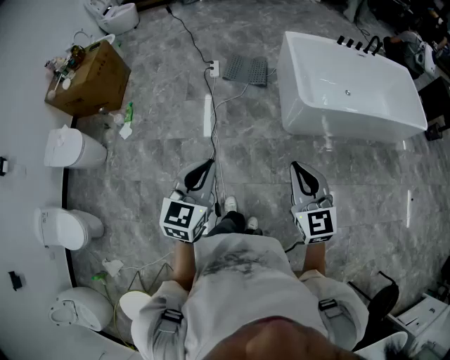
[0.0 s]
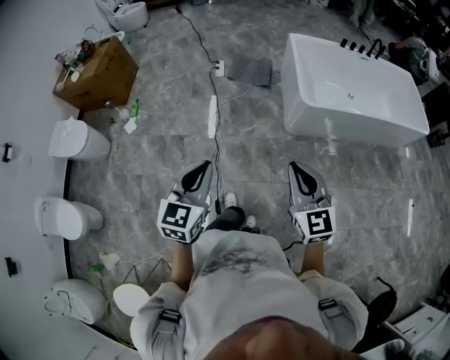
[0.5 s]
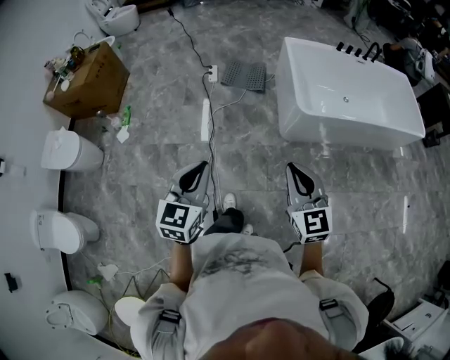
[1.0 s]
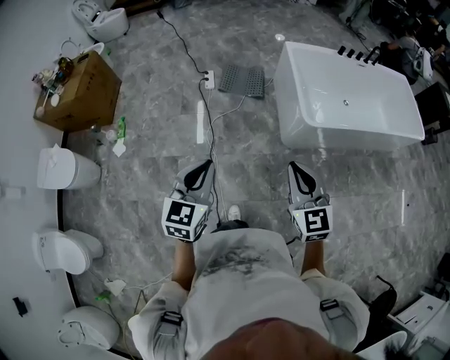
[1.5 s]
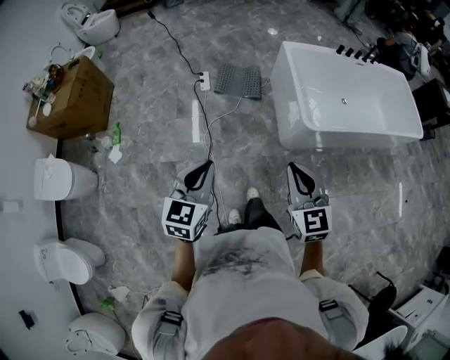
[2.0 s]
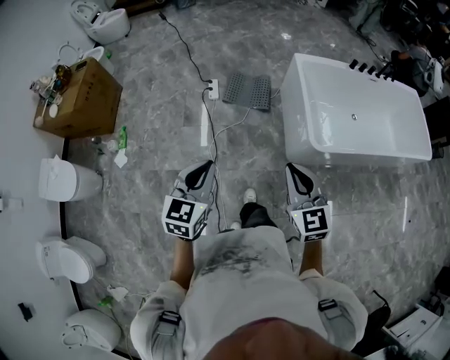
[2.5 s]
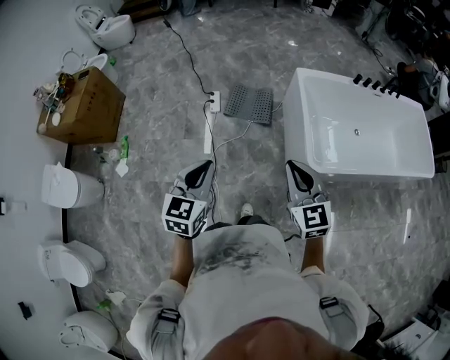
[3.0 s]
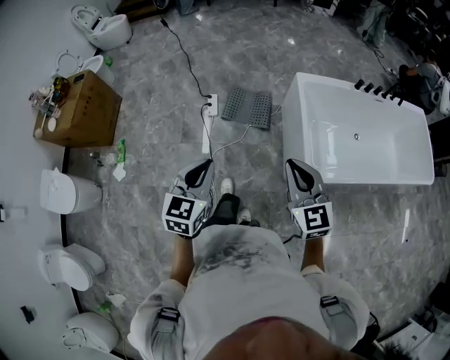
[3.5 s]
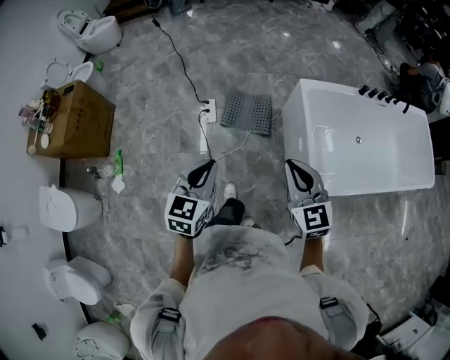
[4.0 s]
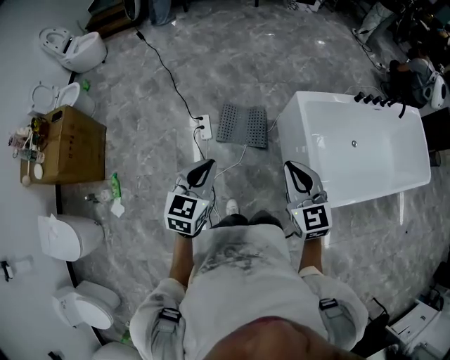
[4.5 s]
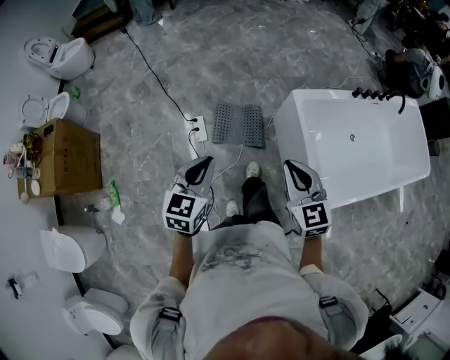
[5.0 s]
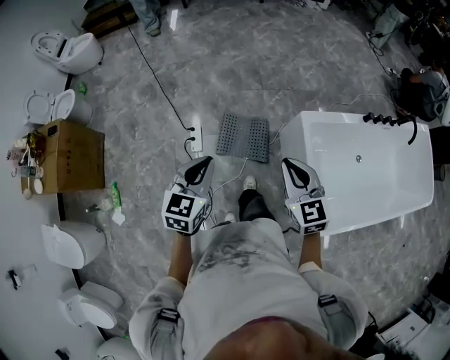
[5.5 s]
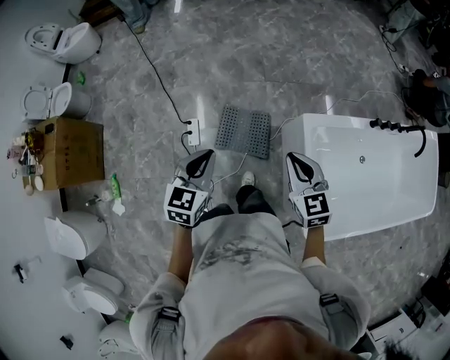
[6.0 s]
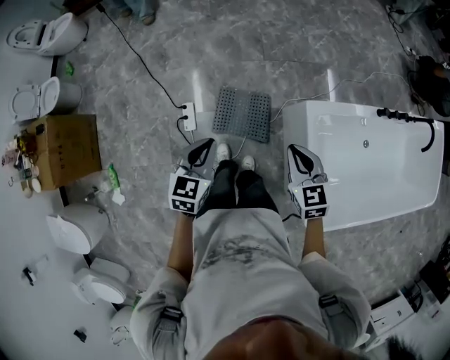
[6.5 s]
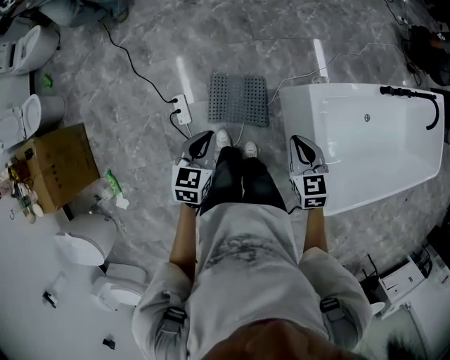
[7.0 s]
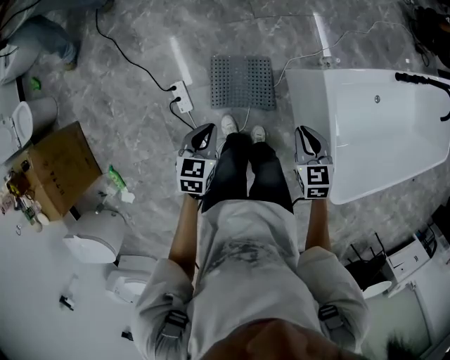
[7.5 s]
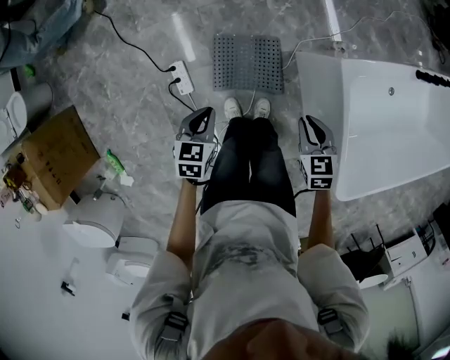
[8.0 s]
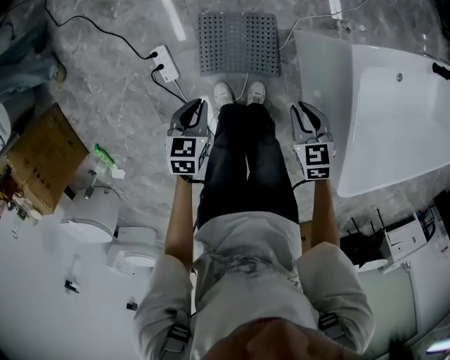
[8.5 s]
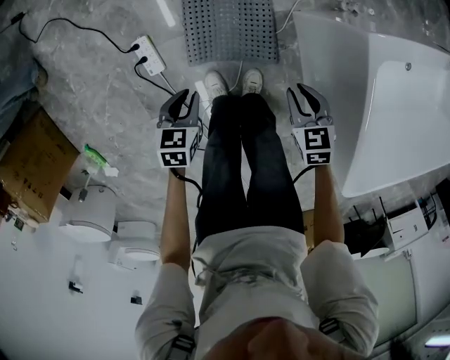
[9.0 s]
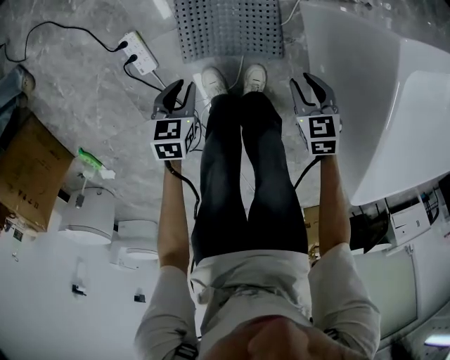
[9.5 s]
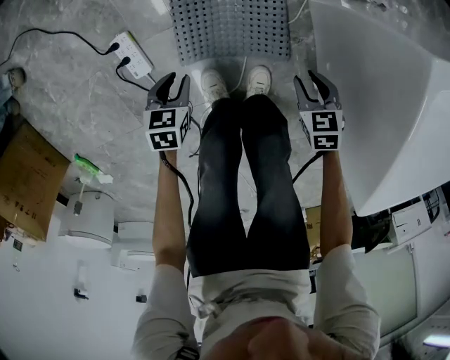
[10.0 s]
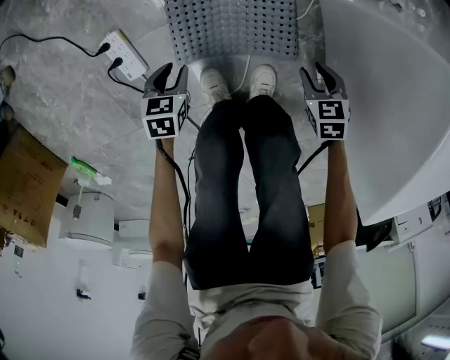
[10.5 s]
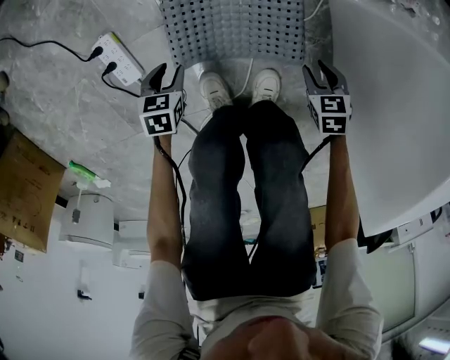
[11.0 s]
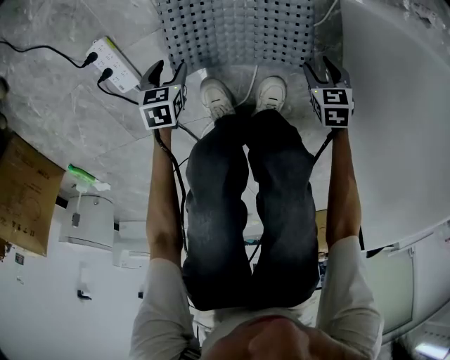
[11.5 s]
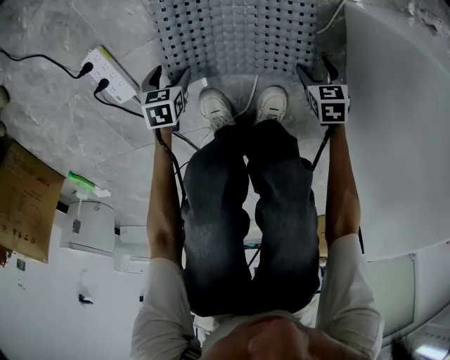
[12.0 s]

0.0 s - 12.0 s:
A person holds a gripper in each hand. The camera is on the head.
0.0 s - 2.0 s: Both grippers move forward, roughly 20 cm.
2.0 s - 4.0 s: Both grippers move forward, about 40 cm.
4.0 s - 6.0 s: Both grippers are carried forward, some 40 cm.
6.0 s - 8.0 s: Both grippers move downward, about 35 cm. The left gripper turns by approximately 20 degrees. The right gripper swivels about 30 degrees.
8.0 s - 10.0 s: The grippers both shift downward by approximately 40 cm.
10.0 s - 12.0 s: Both grippers move downward, some 30 cm. The left gripper opens. The right gripper opens.

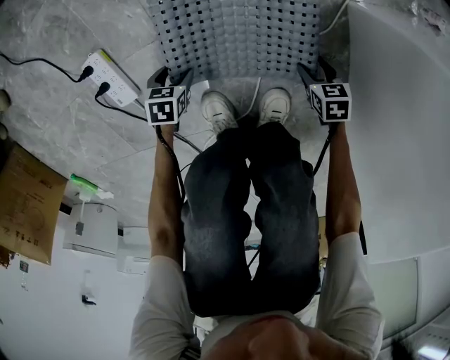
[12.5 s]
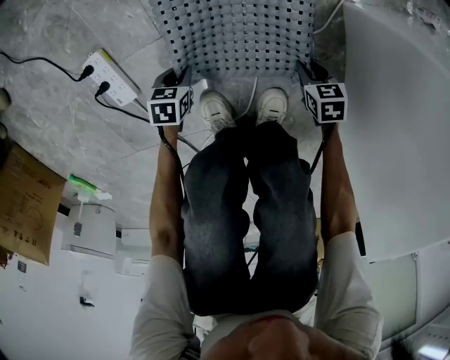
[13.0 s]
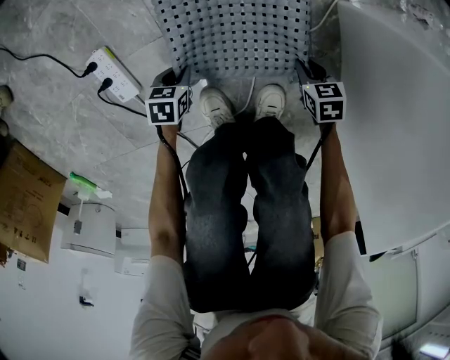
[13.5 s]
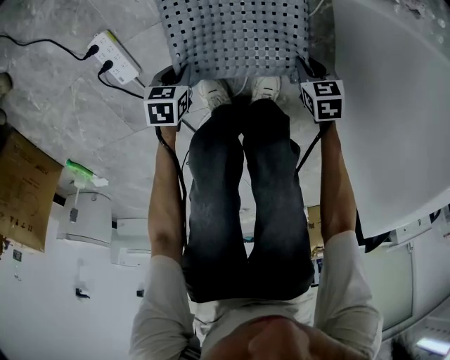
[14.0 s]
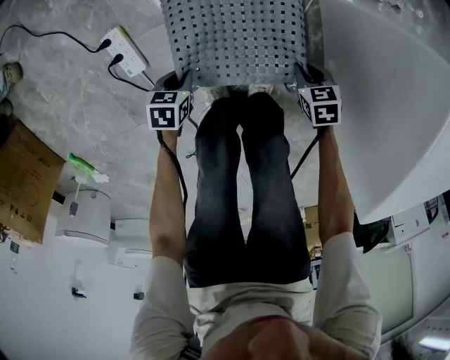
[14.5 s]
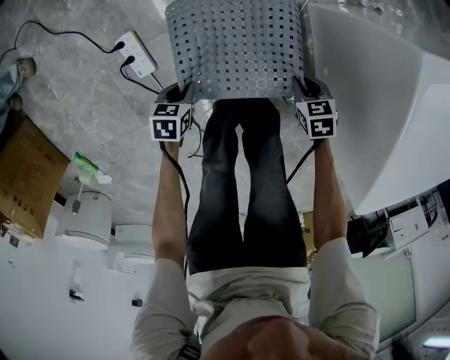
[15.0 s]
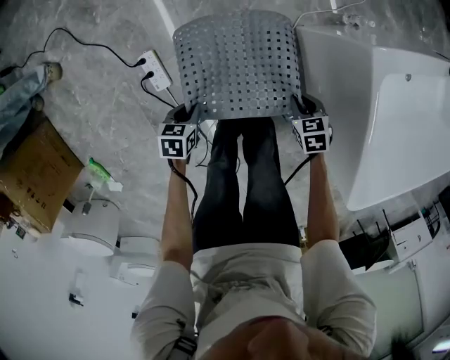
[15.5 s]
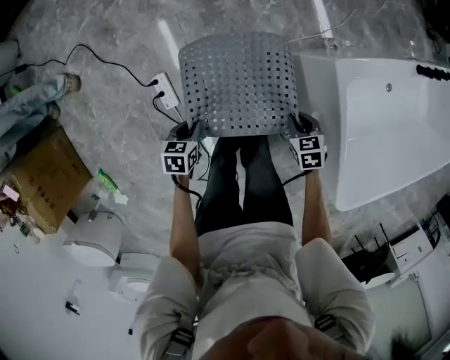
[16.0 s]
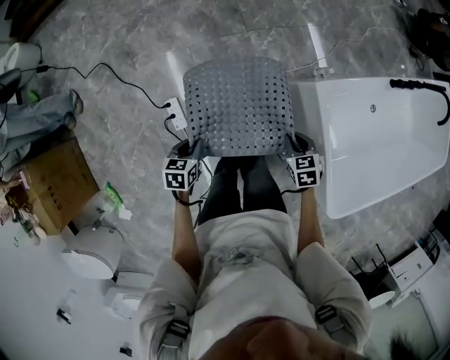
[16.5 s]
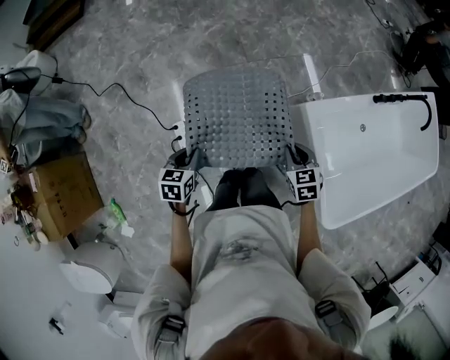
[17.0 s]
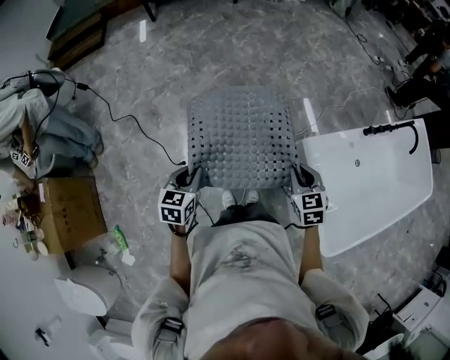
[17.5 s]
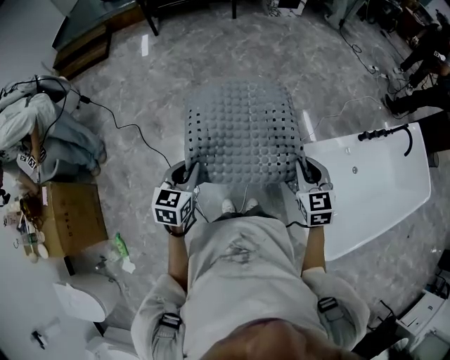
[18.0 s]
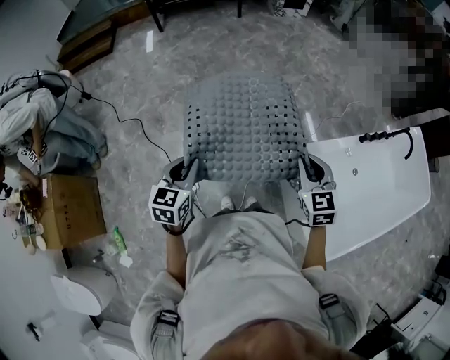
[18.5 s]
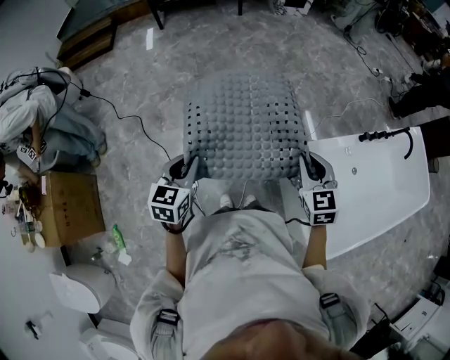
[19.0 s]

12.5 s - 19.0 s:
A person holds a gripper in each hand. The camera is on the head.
12.5 s - 14.5 s: The grippers both shift upward by roughly 20 cm. The right gripper closes, while the left gripper closes up.
14.5 s - 17.0 s: The grippers both shift upward by about 60 cm. The left gripper rotates some 30 degrees. Meanwhile the right gripper turns by about 30 degrees.
17.0 s - 19.0 s: The grippers both shift upward by about 25 cm. The left gripper swivels approximately 20 degrees, while the right gripper swivels about 30 degrees.

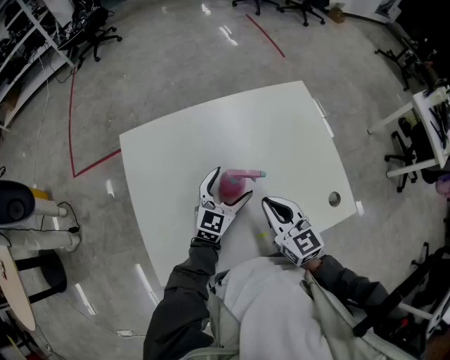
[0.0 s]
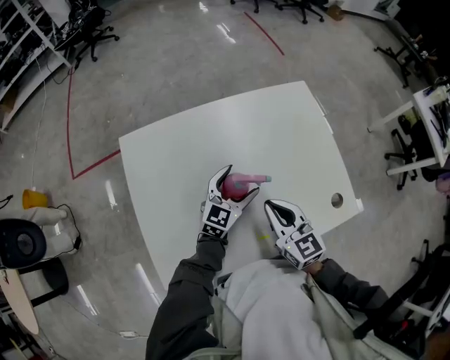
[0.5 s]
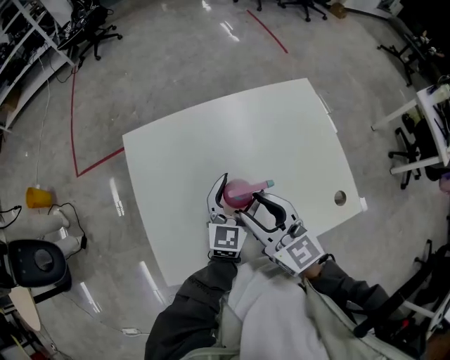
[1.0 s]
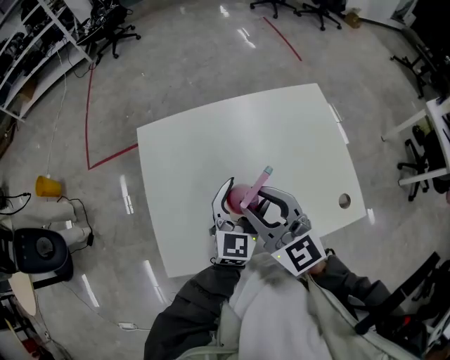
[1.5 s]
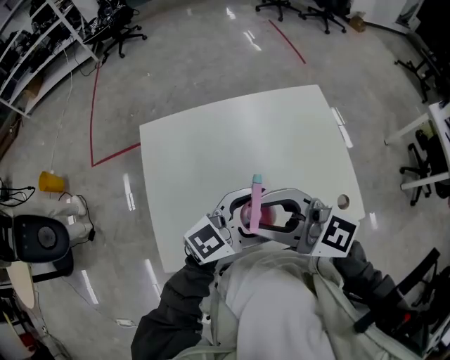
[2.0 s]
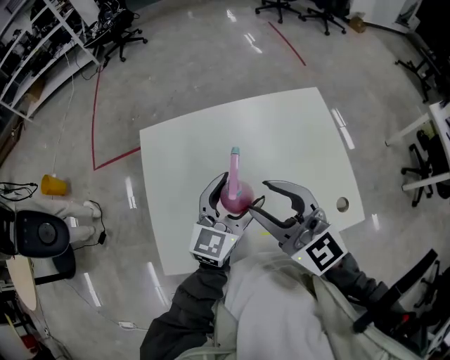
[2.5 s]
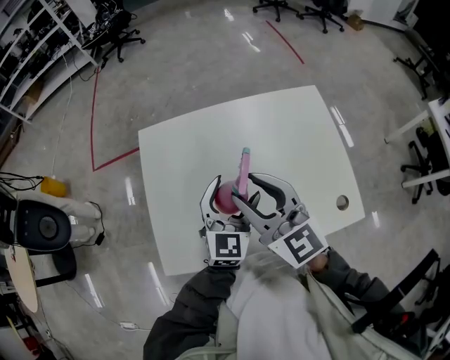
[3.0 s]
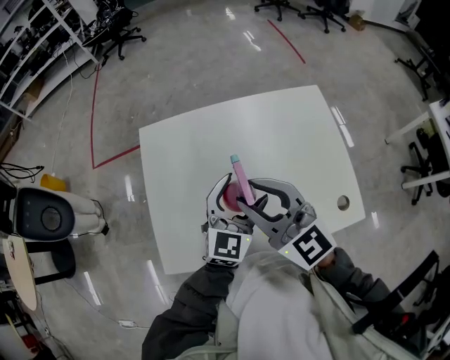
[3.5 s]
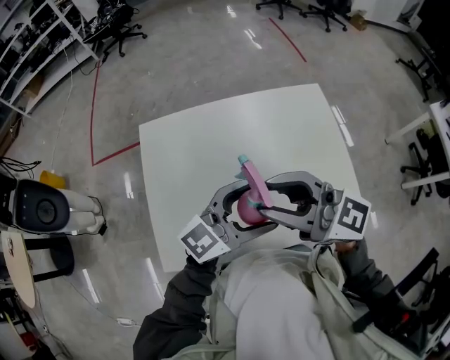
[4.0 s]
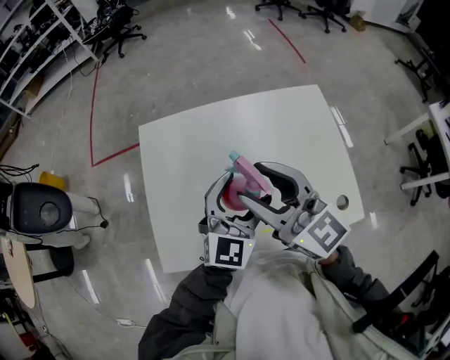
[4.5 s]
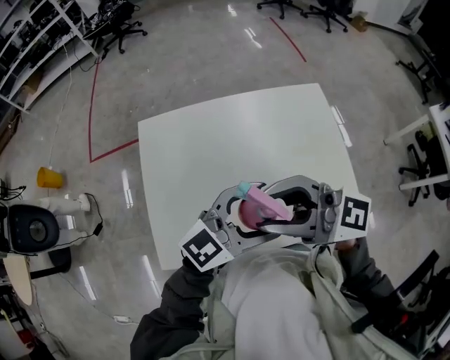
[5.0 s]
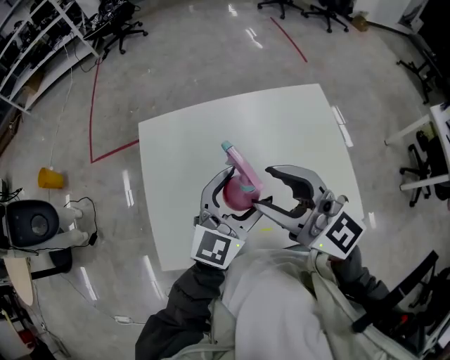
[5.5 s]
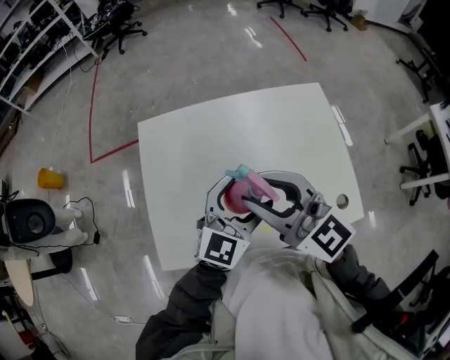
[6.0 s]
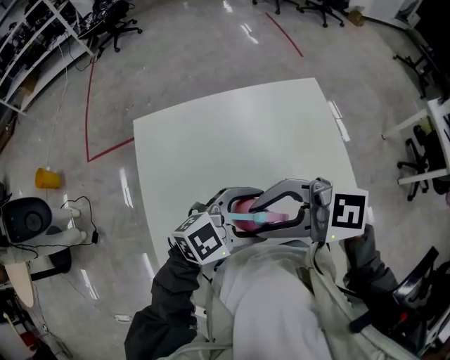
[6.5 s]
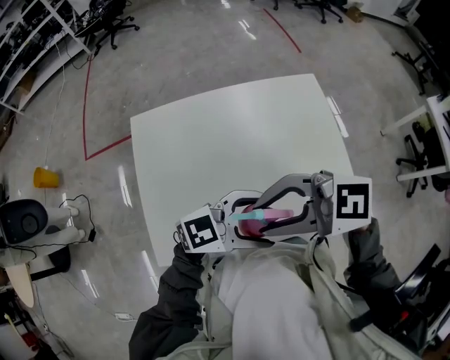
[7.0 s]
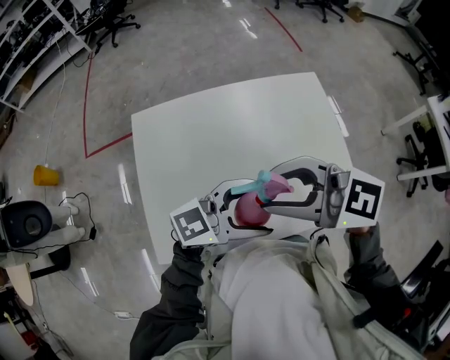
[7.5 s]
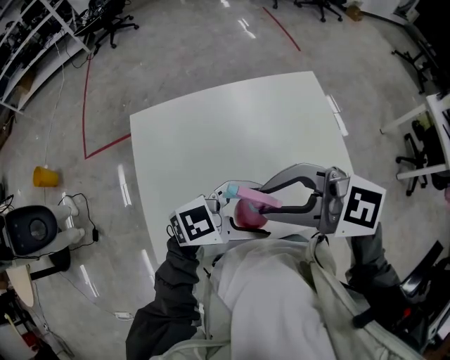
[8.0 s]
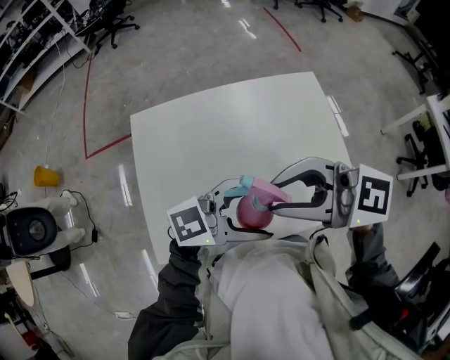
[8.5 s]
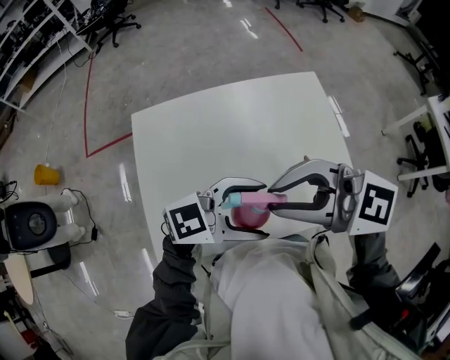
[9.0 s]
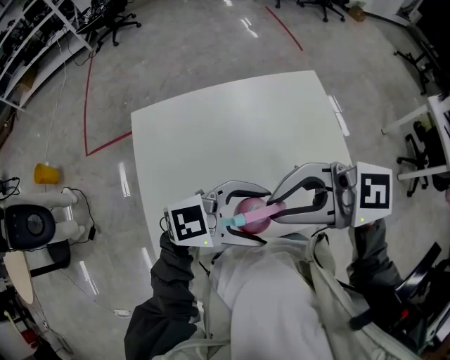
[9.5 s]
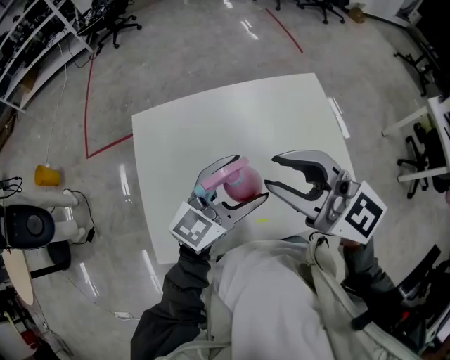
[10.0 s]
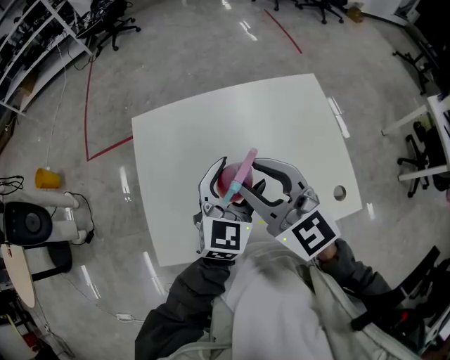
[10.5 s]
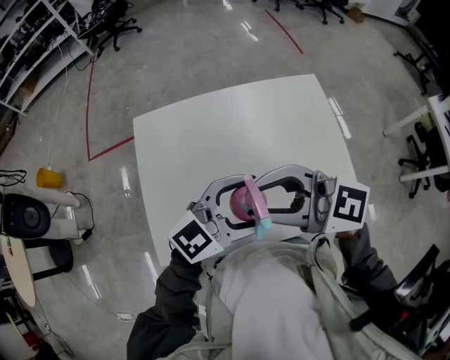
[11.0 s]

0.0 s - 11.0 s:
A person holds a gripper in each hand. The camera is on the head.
0.0 s - 2.0 s: The two grippers go approximately 15 cm upward. The left gripper swivels some 30 degrees. The right gripper swivels roughly 50 degrees, and opens.
2.0 s - 3.5 s: The left gripper shifts by roughly 10 cm, and swivels roughly 40 degrees. Meanwhile the right gripper changes place by approximately 5 cm, and turns by roughly 30 degrees.
3.5 s - 5.5 s: The left gripper goes some 5 cm upward; the right gripper moves about 5 cm.
5.5 s - 7.5 s: The left gripper shifts by roughly 10 cm, and changes its angle by roughly 50 degrees. The right gripper turns by roughly 30 degrees.
9.0 s - 11.0 s: The left gripper changes its angle by some 20 degrees.
